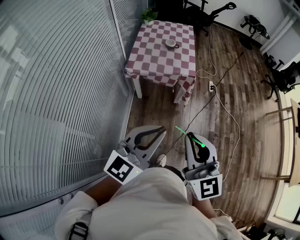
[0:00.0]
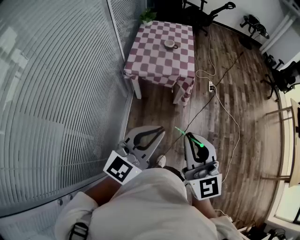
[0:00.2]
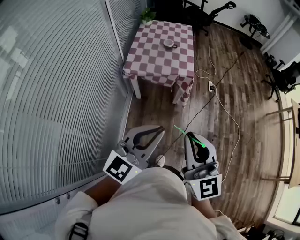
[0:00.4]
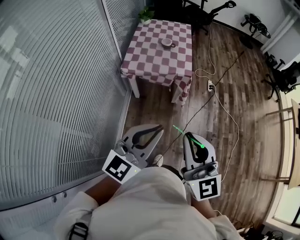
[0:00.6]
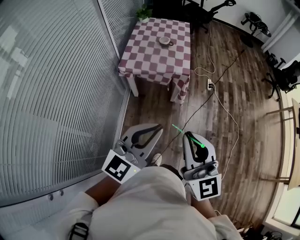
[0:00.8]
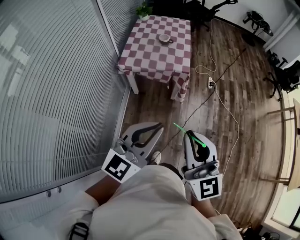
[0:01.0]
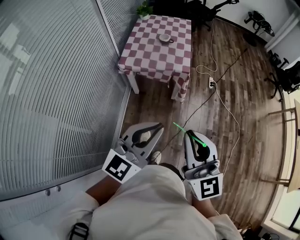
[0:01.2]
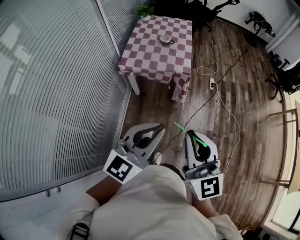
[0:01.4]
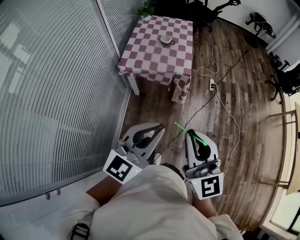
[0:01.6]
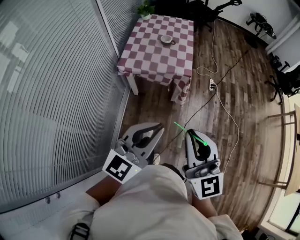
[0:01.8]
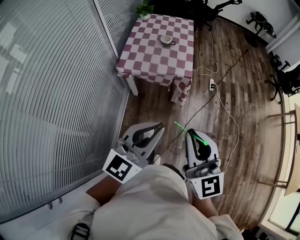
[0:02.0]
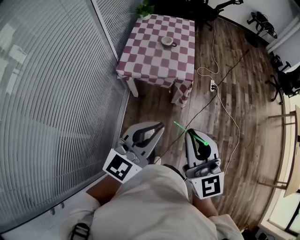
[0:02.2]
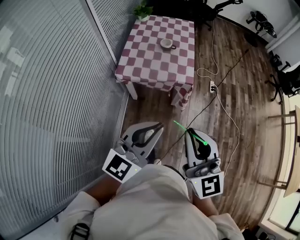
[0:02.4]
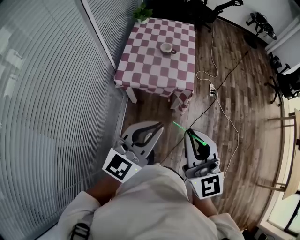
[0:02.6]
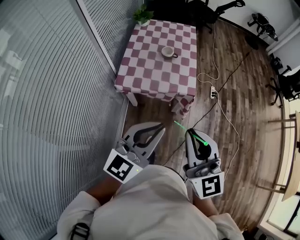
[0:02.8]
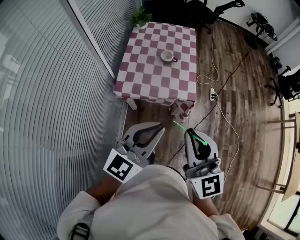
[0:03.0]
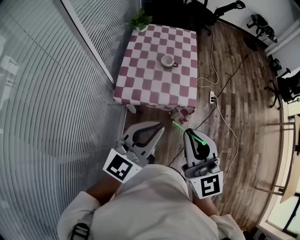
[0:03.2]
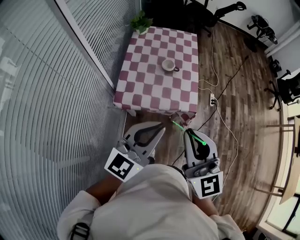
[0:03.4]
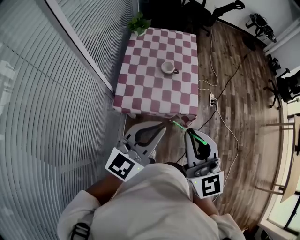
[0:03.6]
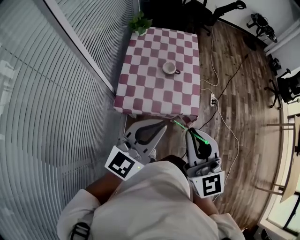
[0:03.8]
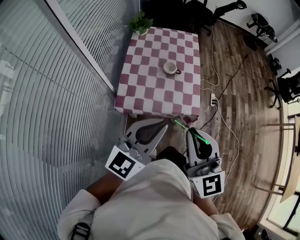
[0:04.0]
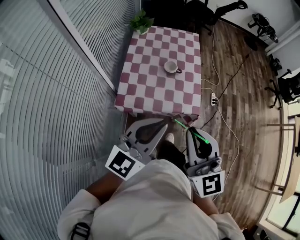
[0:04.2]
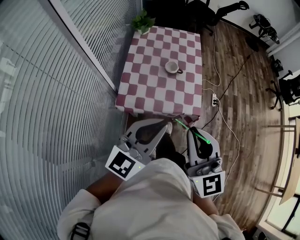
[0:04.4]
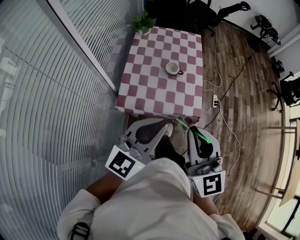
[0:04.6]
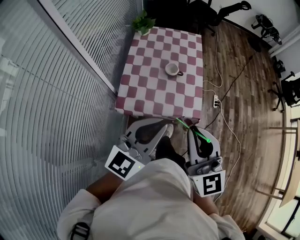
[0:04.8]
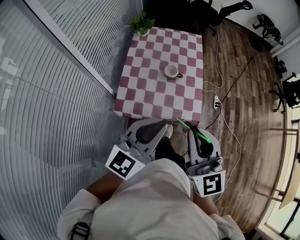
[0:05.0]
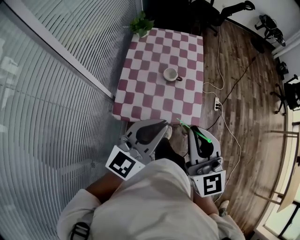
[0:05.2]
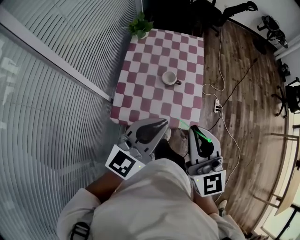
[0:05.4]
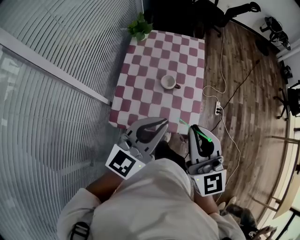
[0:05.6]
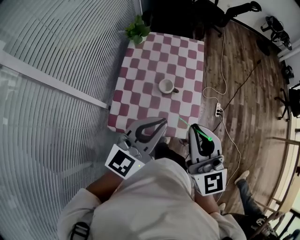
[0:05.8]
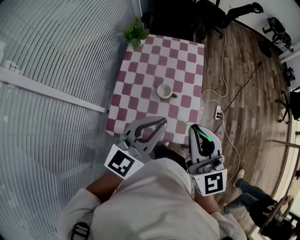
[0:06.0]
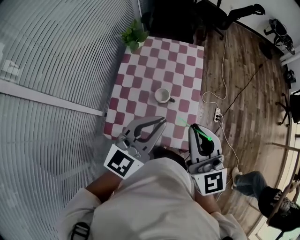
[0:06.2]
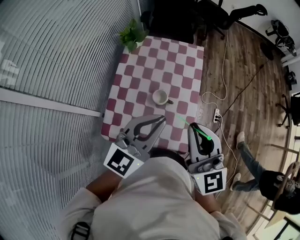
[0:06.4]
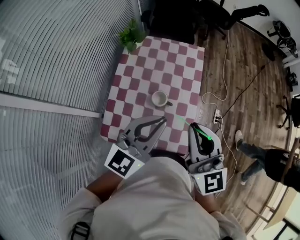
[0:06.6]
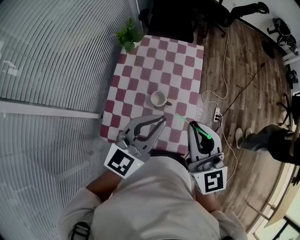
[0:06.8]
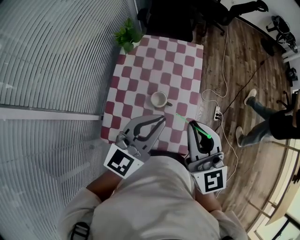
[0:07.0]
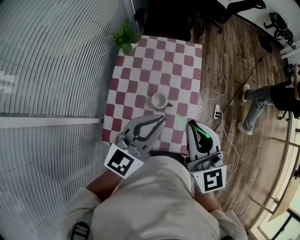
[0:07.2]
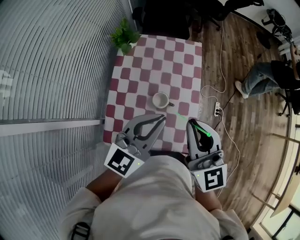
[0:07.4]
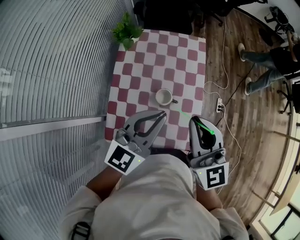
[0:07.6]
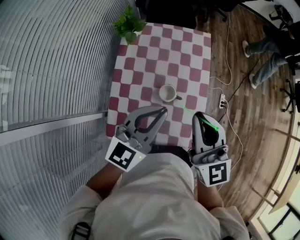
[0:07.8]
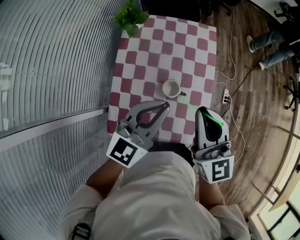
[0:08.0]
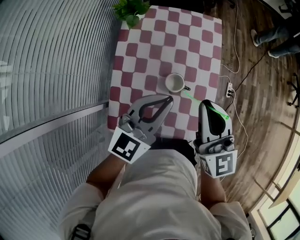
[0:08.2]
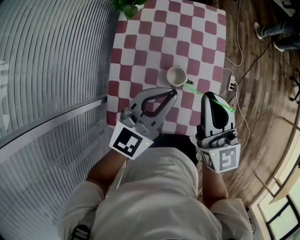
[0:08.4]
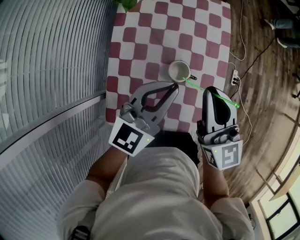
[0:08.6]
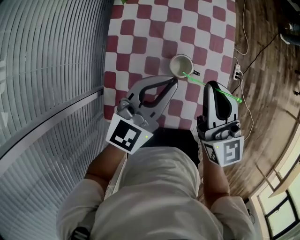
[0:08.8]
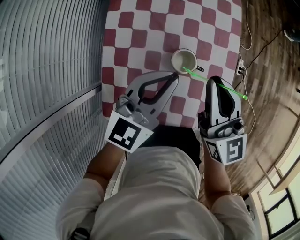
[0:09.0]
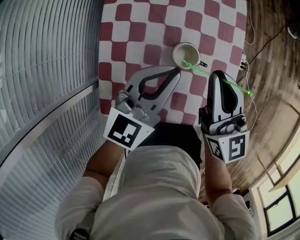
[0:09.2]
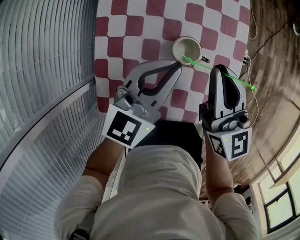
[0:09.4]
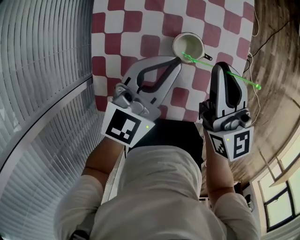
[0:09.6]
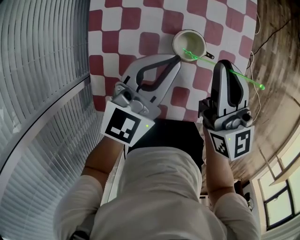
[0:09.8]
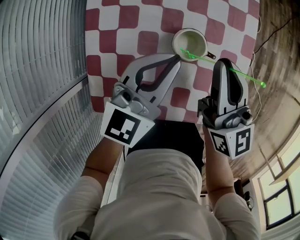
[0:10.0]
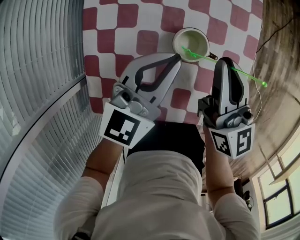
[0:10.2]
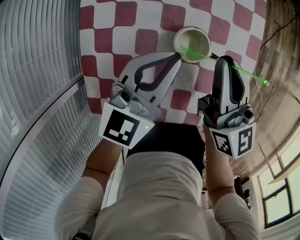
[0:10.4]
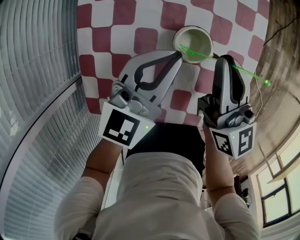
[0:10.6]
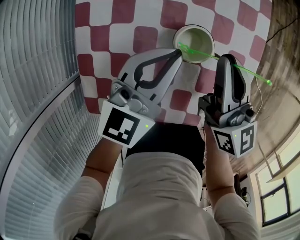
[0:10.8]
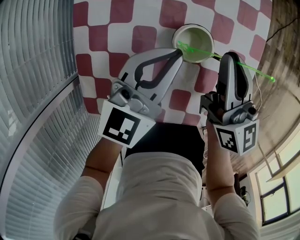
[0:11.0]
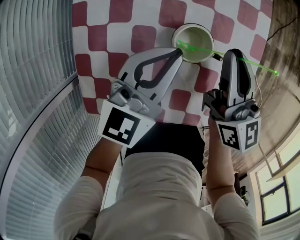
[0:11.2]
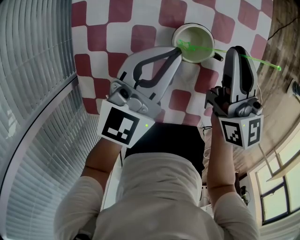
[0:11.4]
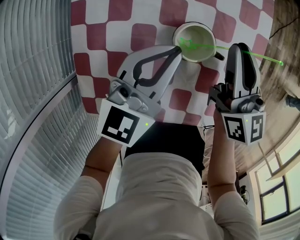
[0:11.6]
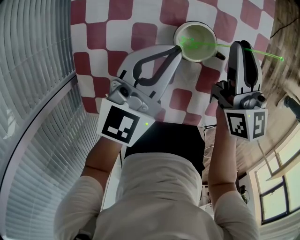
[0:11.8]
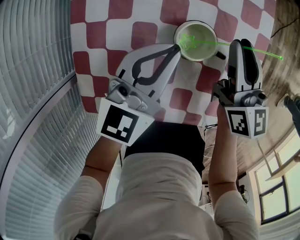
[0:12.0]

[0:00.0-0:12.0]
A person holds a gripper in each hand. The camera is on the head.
0:00.0 to 0:01.6: Both grippers move to the right and forward, some 10 cm.
0:01.6 to 0:03.0: The two grippers go roughly 25 cm forward.
0:03.0 to 0:04.4: Both grippers move forward and to the left, some 15 cm.
0:04.4 to 0:06.0: Both grippers move forward, approximately 25 cm.
0:06.0 to 0:07.6: The two grippers go roughly 10 cm forward.
0:07.6 to 0:09.0: The grippers both shift downward by roughly 20 cm.
0:09.0 to 0:10.4: The grippers both shift downward by approximately 10 cm.
0:10.4 to 0:12.0: The right gripper moves roughly 5 cm.

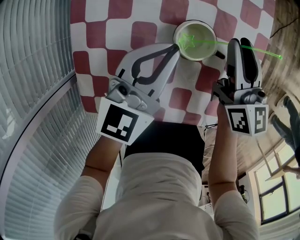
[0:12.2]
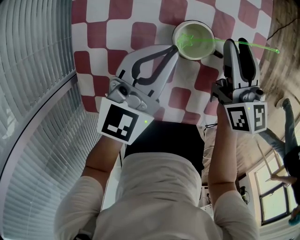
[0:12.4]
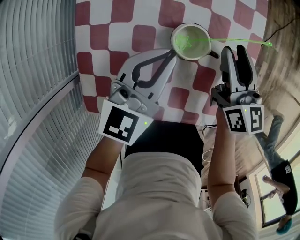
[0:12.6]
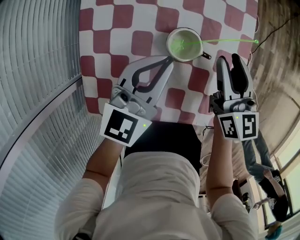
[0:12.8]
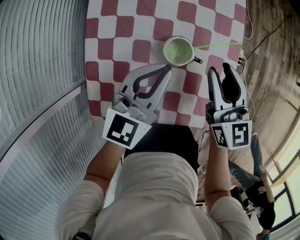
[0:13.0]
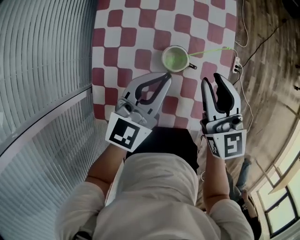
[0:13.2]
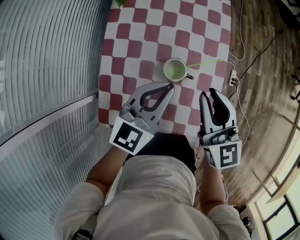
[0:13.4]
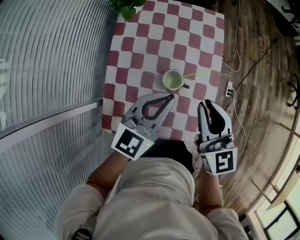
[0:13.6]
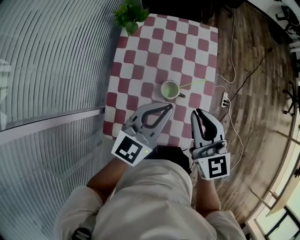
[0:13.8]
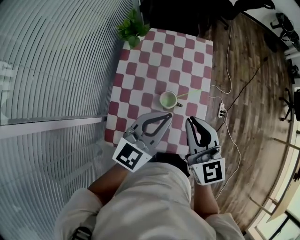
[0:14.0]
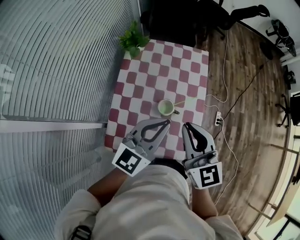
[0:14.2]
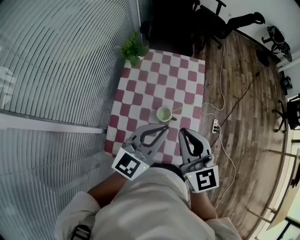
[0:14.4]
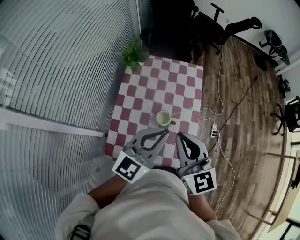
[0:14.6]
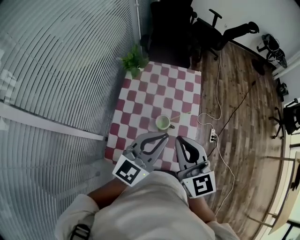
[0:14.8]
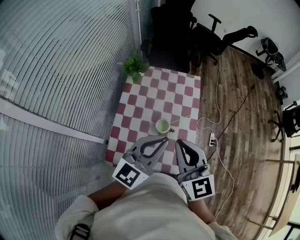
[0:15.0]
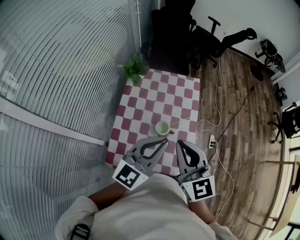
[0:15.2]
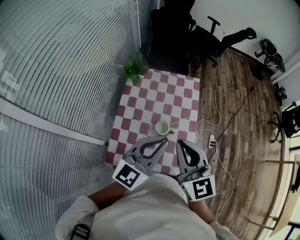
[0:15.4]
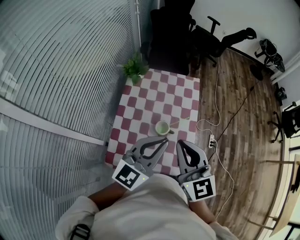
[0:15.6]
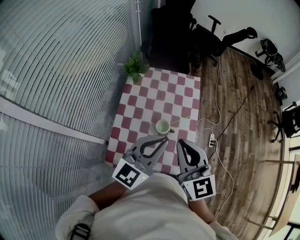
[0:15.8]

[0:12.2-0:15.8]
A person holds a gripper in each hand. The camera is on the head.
0:12.2 to 0:14.0: The left gripper shifts approximately 25 cm upward, while the right gripper shifts roughly 30 cm upward and backward, and swivels approximately 30 degrees.
0:14.0 to 0:15.8: The left gripper travels upward by approximately 10 cm. The right gripper is displaced upward and backward by about 10 cm.

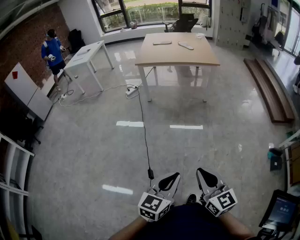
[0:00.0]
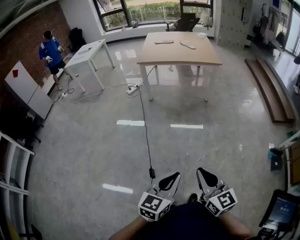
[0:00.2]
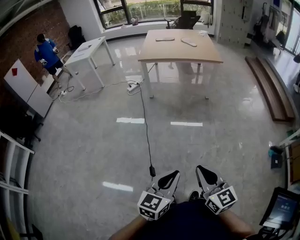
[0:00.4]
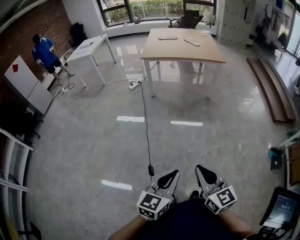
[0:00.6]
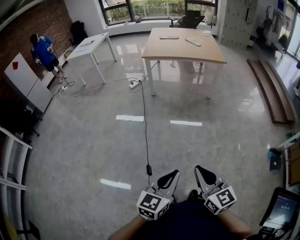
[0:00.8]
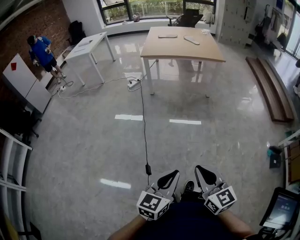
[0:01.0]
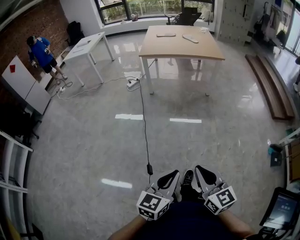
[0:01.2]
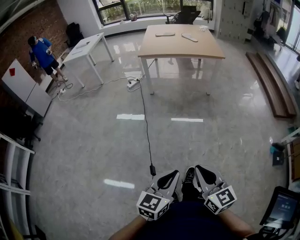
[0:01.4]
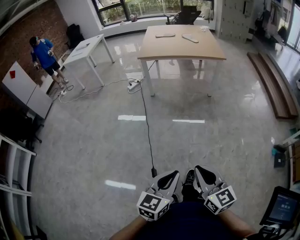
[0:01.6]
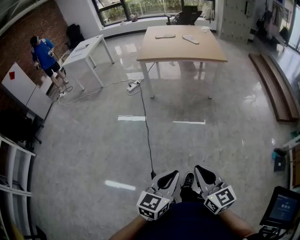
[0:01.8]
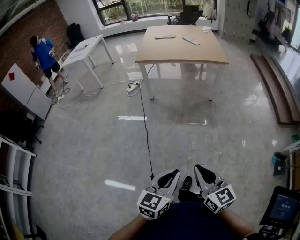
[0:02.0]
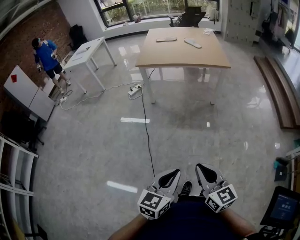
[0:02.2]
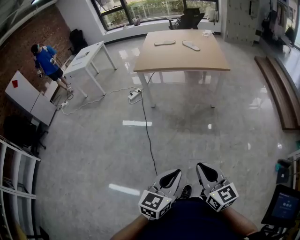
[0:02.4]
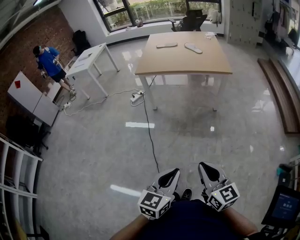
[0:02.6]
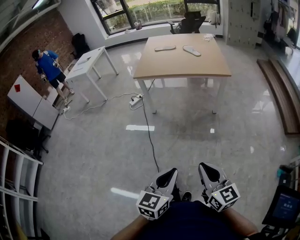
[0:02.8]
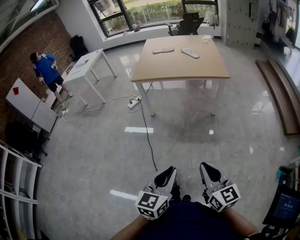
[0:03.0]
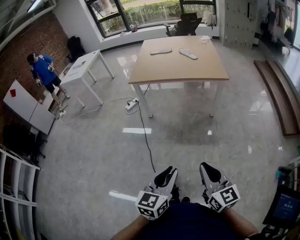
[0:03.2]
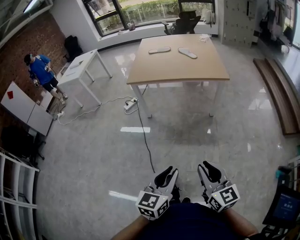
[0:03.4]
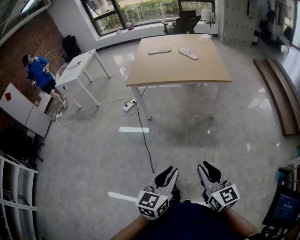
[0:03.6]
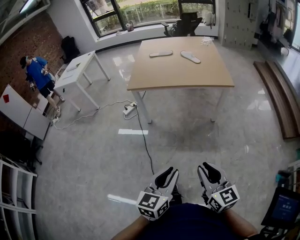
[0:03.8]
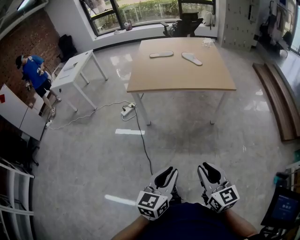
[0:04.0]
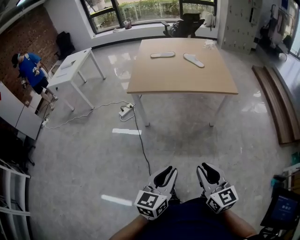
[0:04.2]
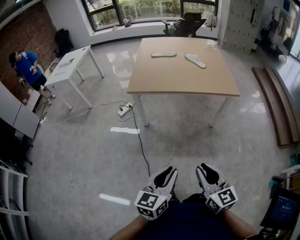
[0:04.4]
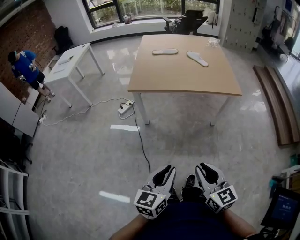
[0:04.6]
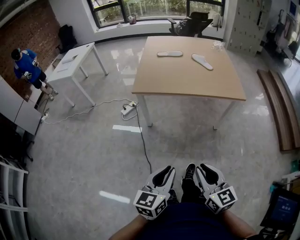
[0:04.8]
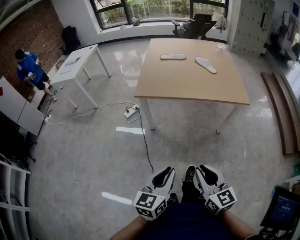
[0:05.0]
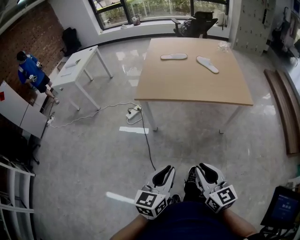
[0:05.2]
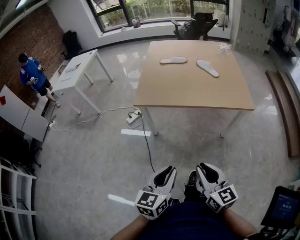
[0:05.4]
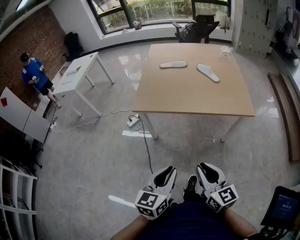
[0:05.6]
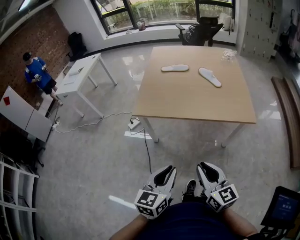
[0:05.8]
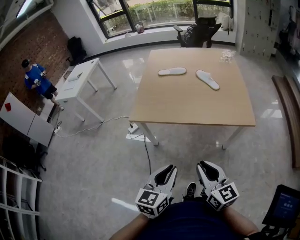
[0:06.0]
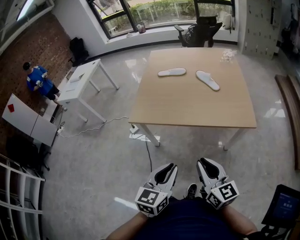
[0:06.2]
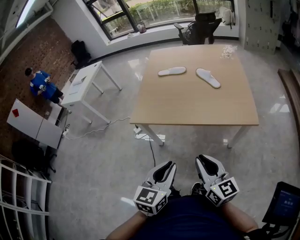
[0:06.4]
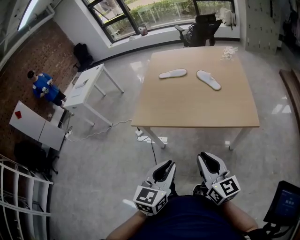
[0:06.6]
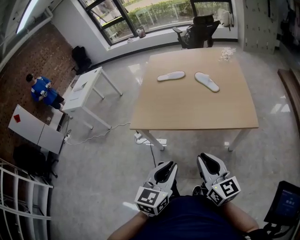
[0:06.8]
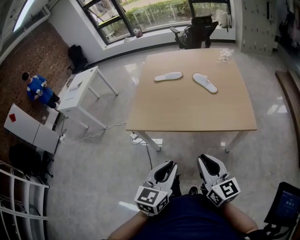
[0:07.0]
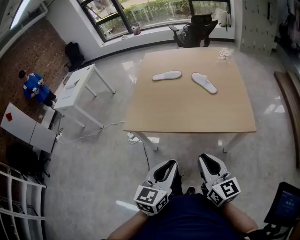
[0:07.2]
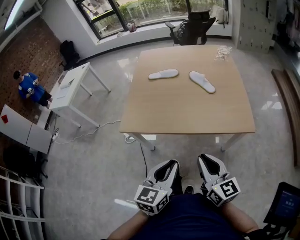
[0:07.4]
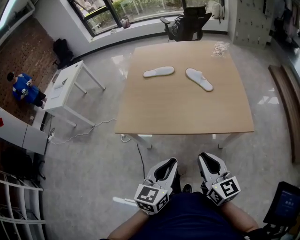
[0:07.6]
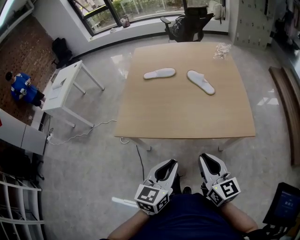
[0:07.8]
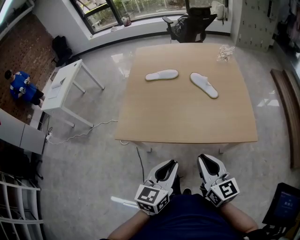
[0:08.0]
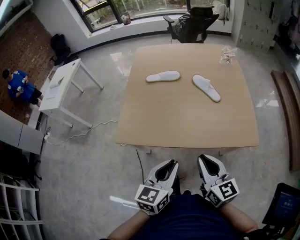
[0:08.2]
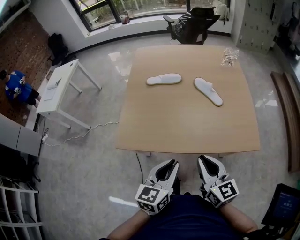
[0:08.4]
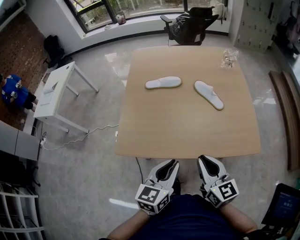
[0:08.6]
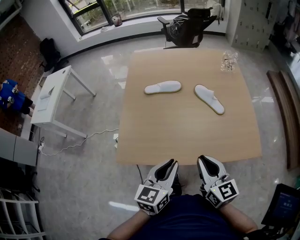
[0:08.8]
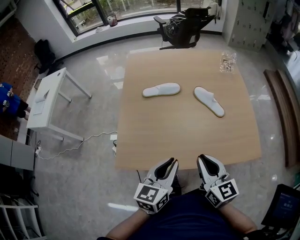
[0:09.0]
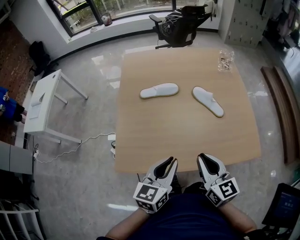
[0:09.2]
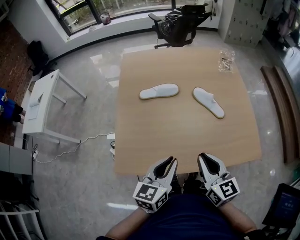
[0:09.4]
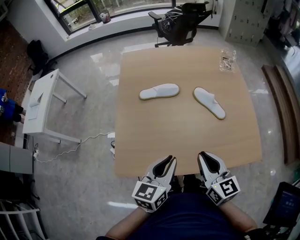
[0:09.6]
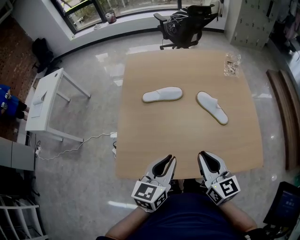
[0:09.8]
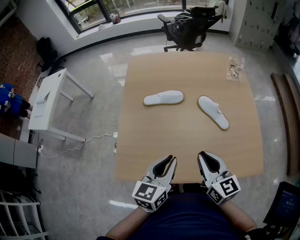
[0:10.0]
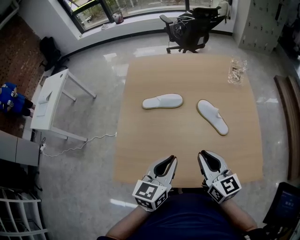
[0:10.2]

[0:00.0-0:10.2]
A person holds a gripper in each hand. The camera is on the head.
0:00.0 to 0:01.4: Both grippers travel together to the left, some 5 cm.
0:01.4 to 0:03.0: The left gripper travels forward by about 30 cm. The right gripper shifts approximately 30 cm forward and to the right.
0:03.0 to 0:04.4: The two grippers go about 25 cm forward and to the left.
0:04.4 to 0:05.8: The two grippers go about 20 cm forward.
0:05.8 to 0:07.2: Both grippers move forward and to the right, about 15 cm.
0:07.2 to 0:08.8: Both grippers move forward, some 25 cm.
0:08.8 to 0:10.2: The grippers both shift forward by some 15 cm.
